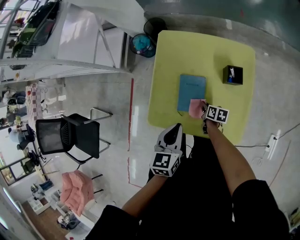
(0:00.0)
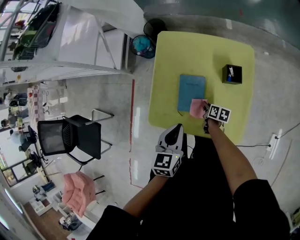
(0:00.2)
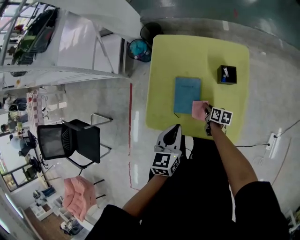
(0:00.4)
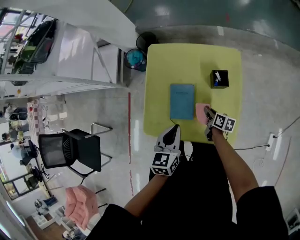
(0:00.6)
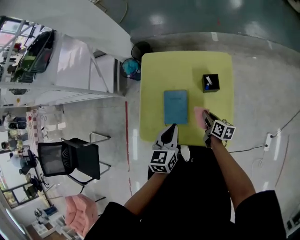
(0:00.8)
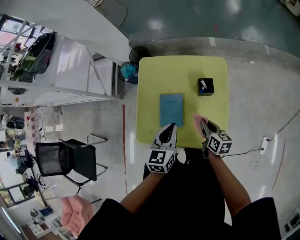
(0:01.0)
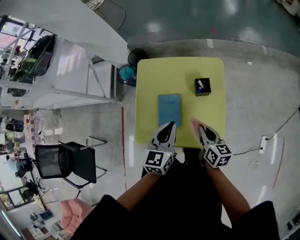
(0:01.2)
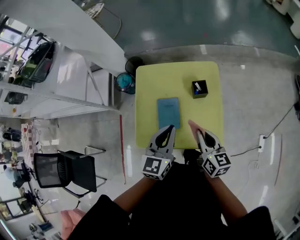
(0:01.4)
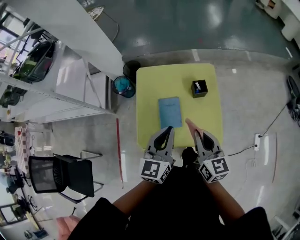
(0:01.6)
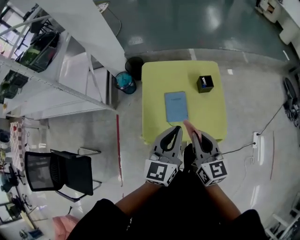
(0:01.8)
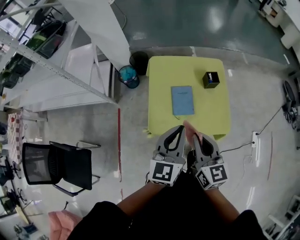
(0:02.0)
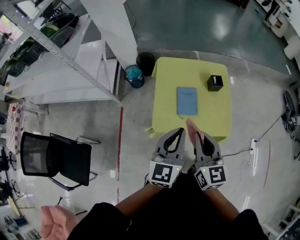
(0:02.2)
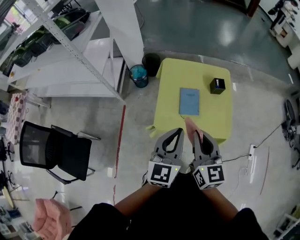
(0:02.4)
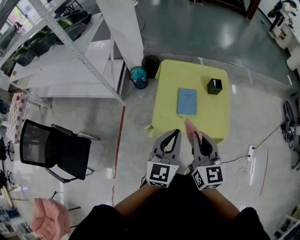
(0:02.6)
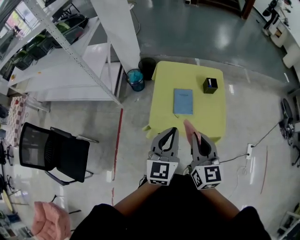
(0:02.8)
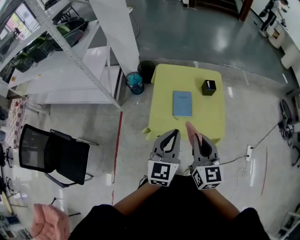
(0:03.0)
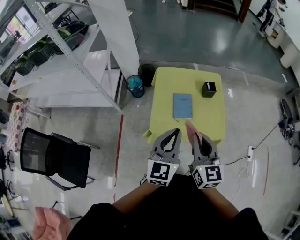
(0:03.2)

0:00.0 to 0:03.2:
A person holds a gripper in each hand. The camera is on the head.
0:00.0 to 0:01.6: The left gripper moves upward, about 20 cm, and turns by roughly 30 degrees. The right gripper moves upward, about 40 cm, and tilts its fingers approximately 30 degrees upward.
0:01.6 to 0:03.2: The grippers both shift backward, to the left and upward by roughly 25 cm.

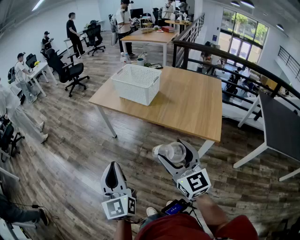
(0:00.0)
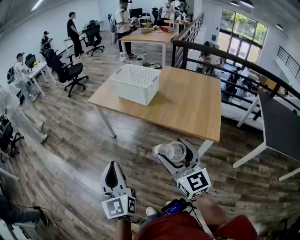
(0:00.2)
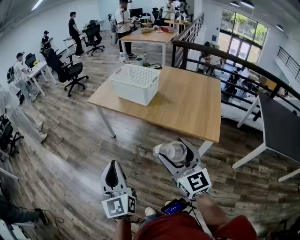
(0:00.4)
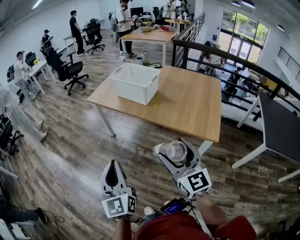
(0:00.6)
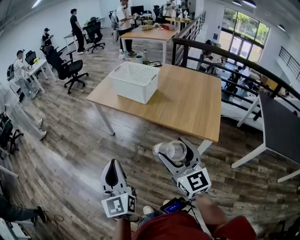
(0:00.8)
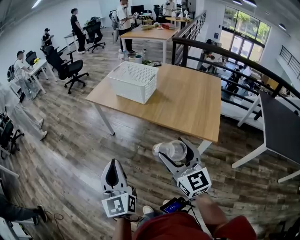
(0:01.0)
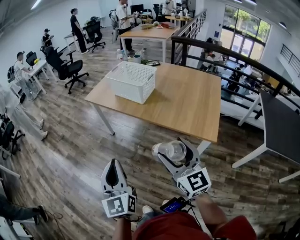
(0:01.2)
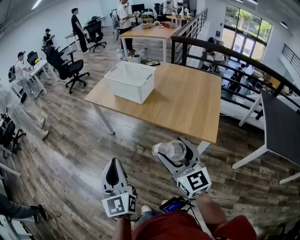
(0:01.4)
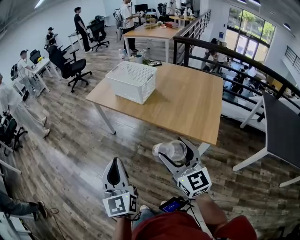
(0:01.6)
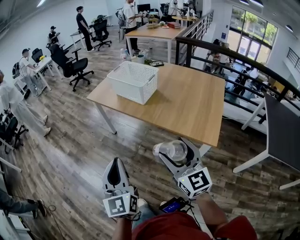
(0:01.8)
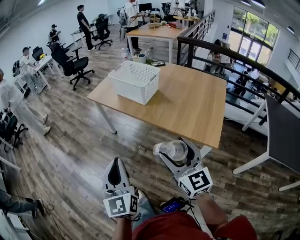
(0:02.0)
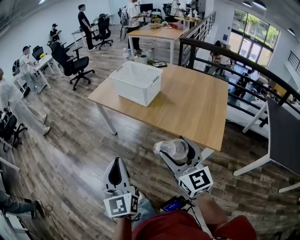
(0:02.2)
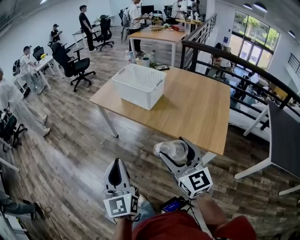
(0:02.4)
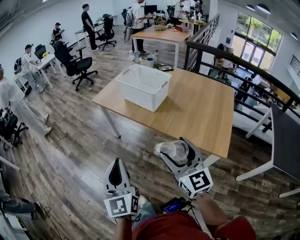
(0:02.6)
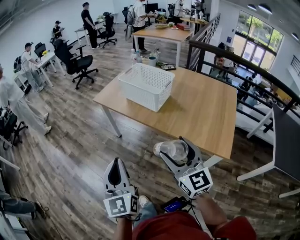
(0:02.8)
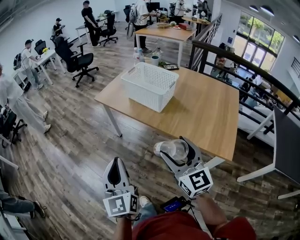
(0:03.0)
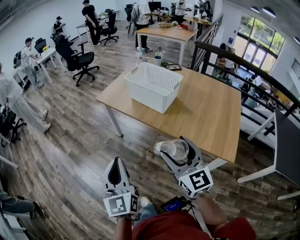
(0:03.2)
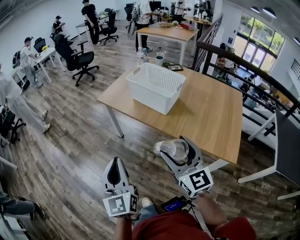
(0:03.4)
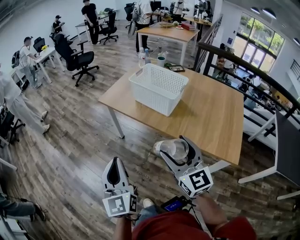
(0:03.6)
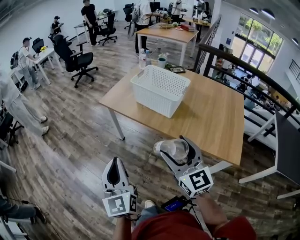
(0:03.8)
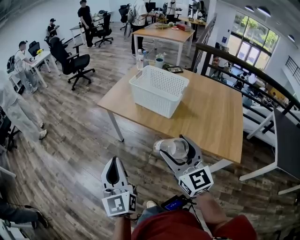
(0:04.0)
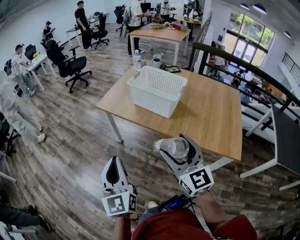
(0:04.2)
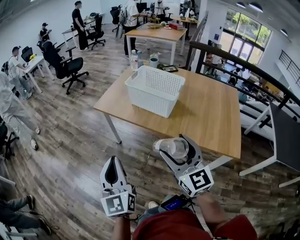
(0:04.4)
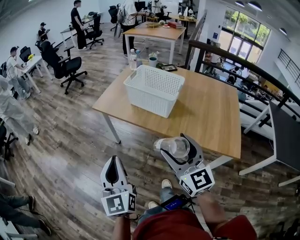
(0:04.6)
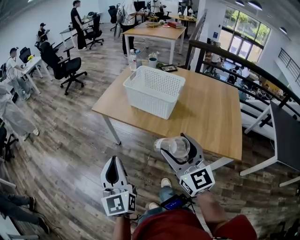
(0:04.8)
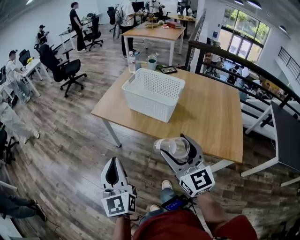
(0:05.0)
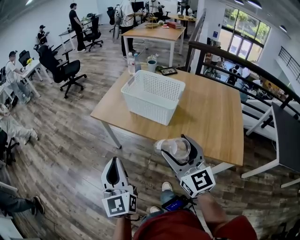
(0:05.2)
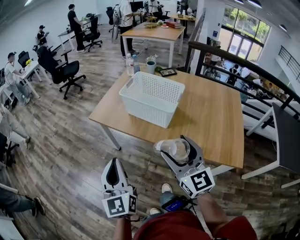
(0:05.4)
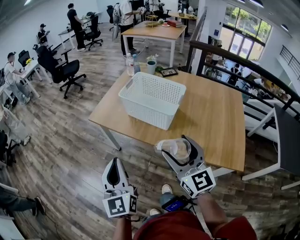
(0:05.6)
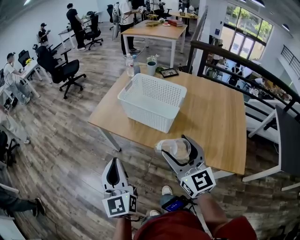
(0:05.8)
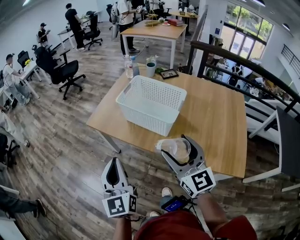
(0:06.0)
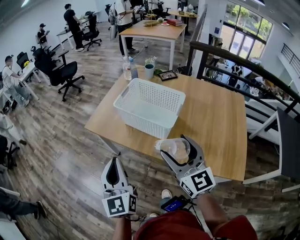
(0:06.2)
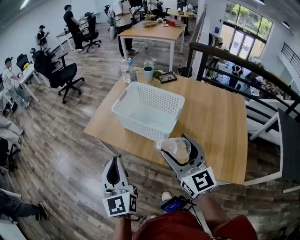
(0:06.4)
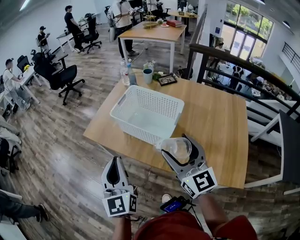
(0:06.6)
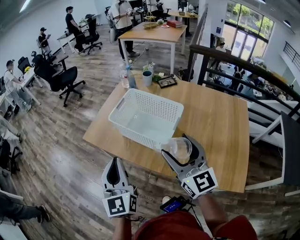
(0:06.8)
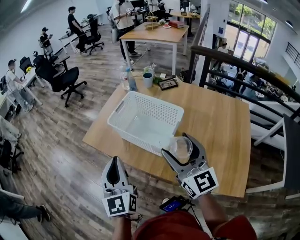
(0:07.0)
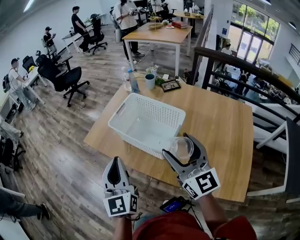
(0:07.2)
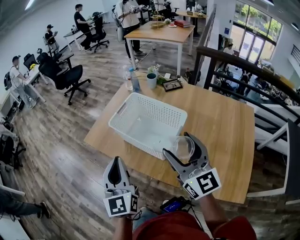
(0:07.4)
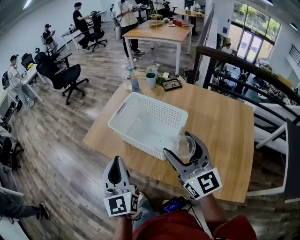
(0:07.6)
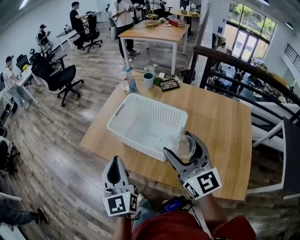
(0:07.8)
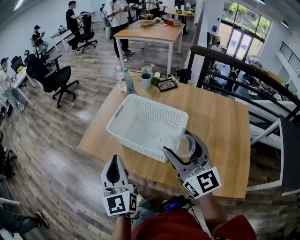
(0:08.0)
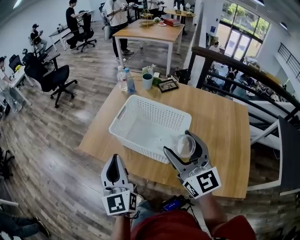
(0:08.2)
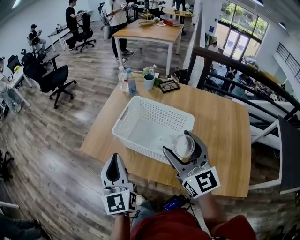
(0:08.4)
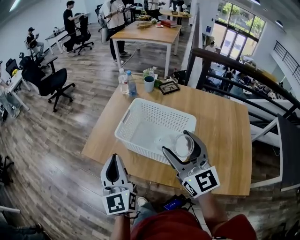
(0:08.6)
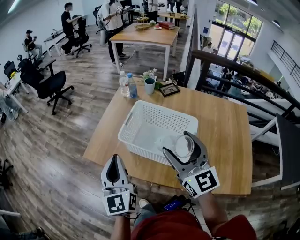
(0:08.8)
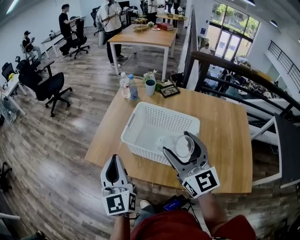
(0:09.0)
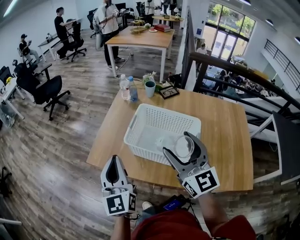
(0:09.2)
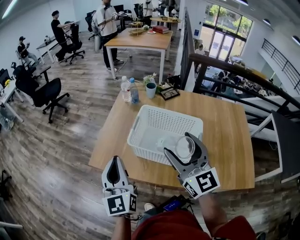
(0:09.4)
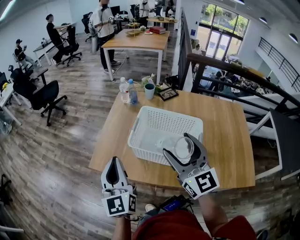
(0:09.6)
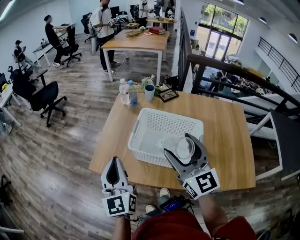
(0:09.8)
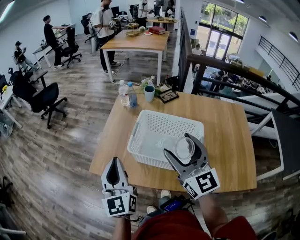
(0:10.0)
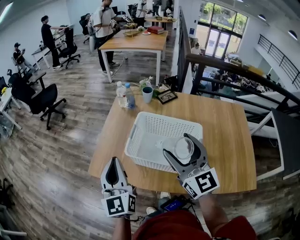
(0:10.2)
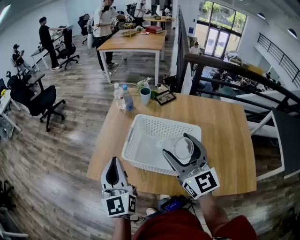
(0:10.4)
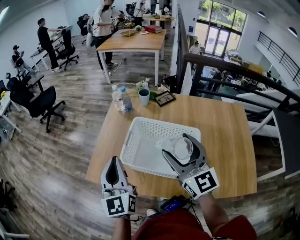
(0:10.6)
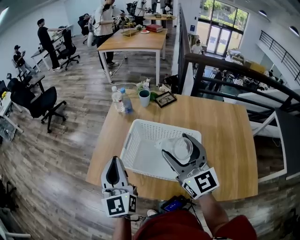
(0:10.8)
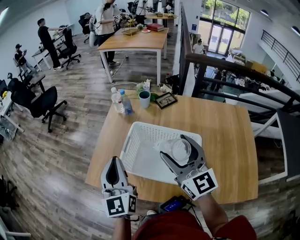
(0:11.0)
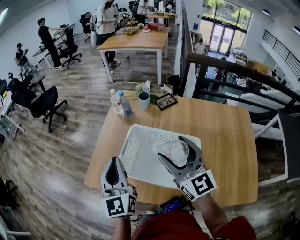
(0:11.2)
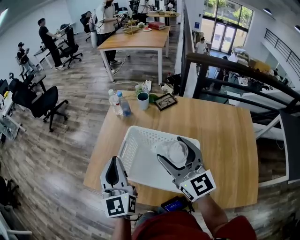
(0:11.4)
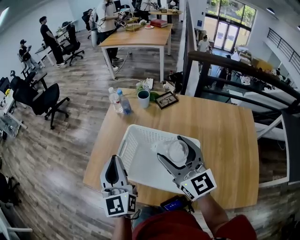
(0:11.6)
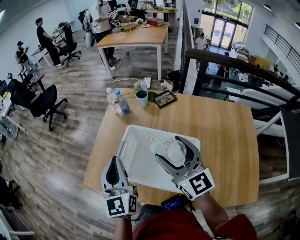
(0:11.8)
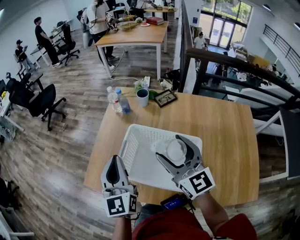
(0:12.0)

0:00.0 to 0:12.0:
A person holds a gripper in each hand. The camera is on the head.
0:00.0 to 0:01.6: Both grippers move to the right, roughly 10 cm.
0:01.6 to 0:03.0: The two grippers go approximately 15 cm forward and to the left.
0:03.0 to 0:04.4: Both grippers move forward and to the left, about 10 cm.
0:04.4 to 0:06.0: The grippers both shift forward and to the right by about 15 cm.
0:06.0 to 0:07.6: The two grippers go some 15 cm forward and to the right.
0:07.6 to 0:09.0: The left gripper goes some 15 cm forward and to the left. Meanwhile the right gripper shifts some 10 cm to the left and forward.
0:09.0 to 0:10.4: The left gripper goes about 5 cm forward.
0:10.4 to 0:12.0: The right gripper is displaced forward by approximately 5 cm, while the left gripper is displaced to the right and forward by some 10 cm.

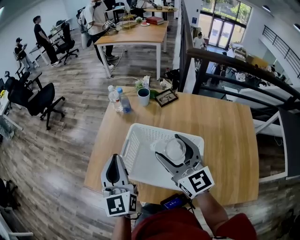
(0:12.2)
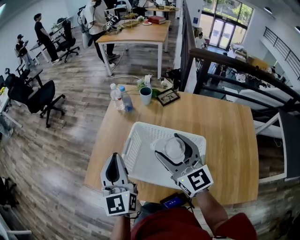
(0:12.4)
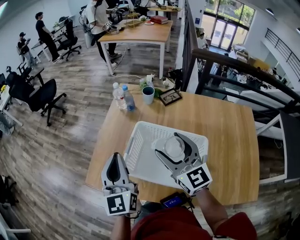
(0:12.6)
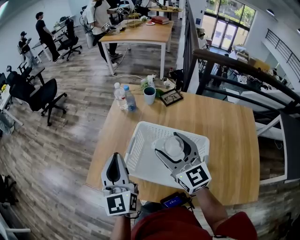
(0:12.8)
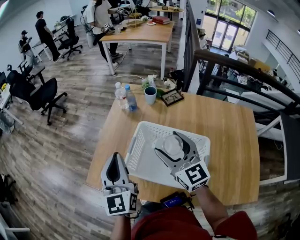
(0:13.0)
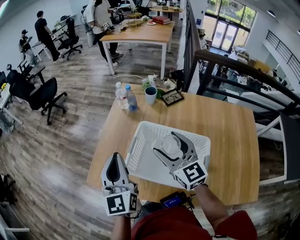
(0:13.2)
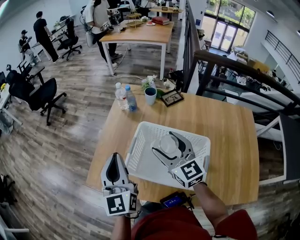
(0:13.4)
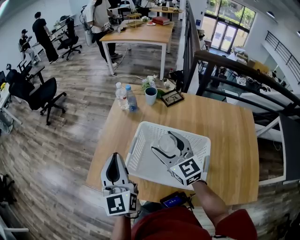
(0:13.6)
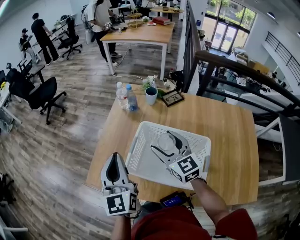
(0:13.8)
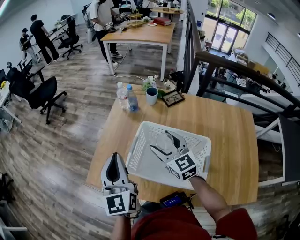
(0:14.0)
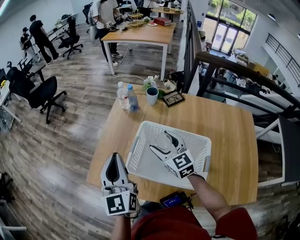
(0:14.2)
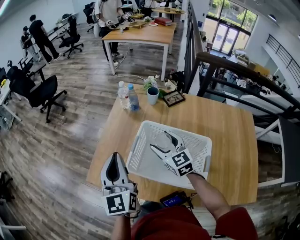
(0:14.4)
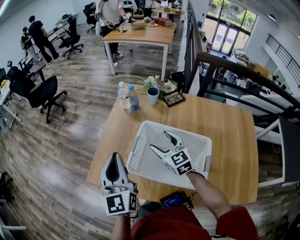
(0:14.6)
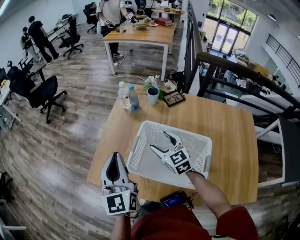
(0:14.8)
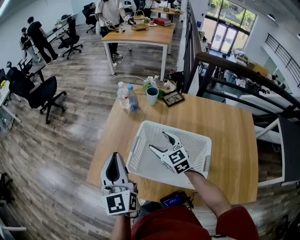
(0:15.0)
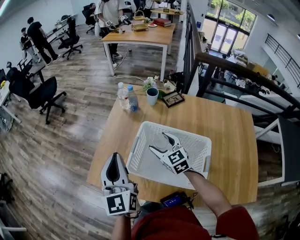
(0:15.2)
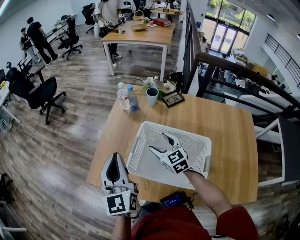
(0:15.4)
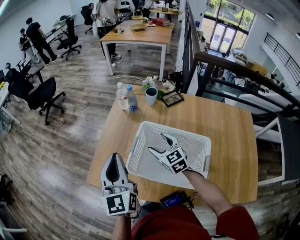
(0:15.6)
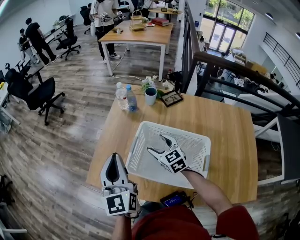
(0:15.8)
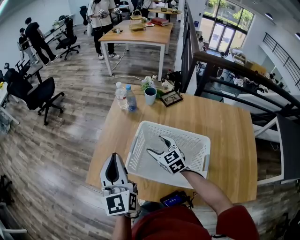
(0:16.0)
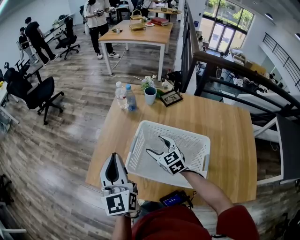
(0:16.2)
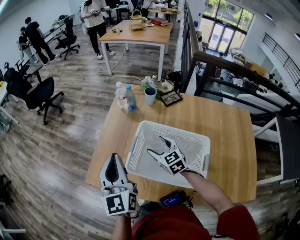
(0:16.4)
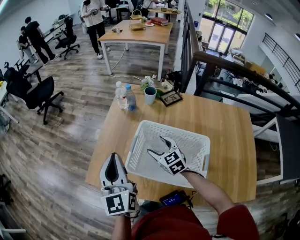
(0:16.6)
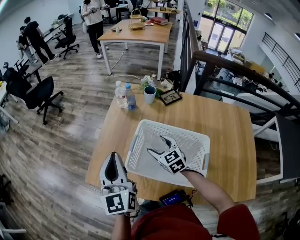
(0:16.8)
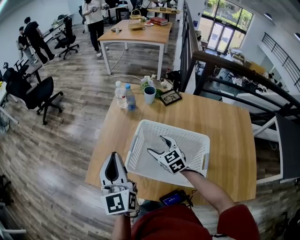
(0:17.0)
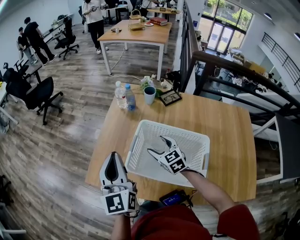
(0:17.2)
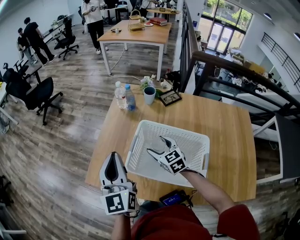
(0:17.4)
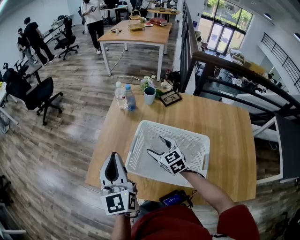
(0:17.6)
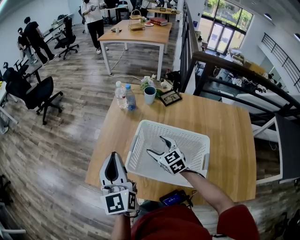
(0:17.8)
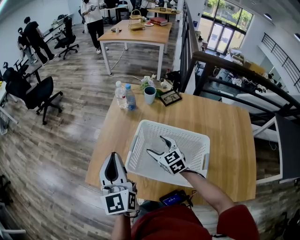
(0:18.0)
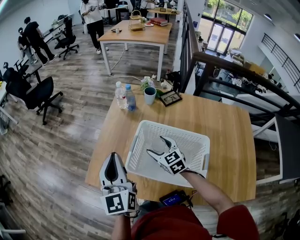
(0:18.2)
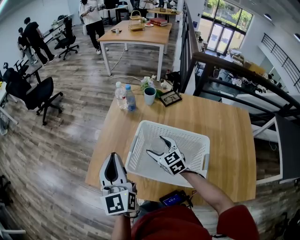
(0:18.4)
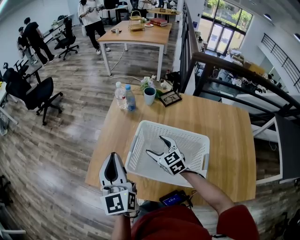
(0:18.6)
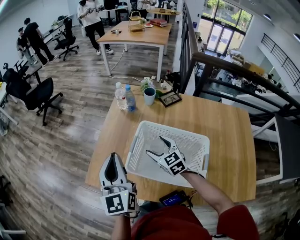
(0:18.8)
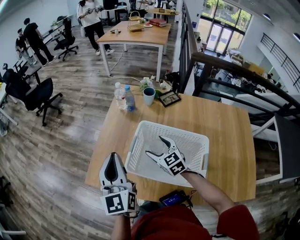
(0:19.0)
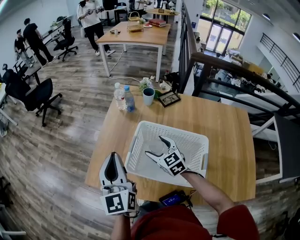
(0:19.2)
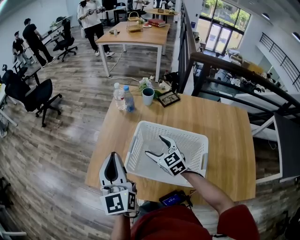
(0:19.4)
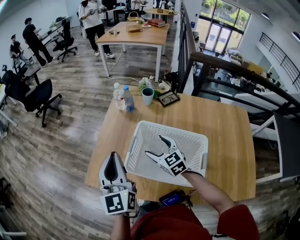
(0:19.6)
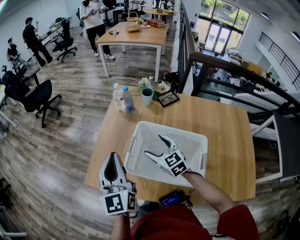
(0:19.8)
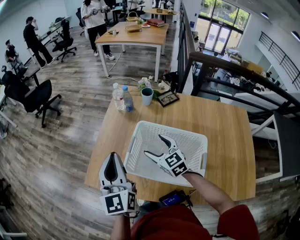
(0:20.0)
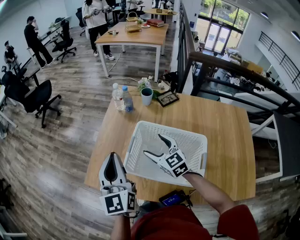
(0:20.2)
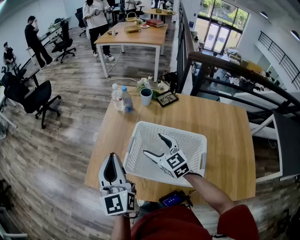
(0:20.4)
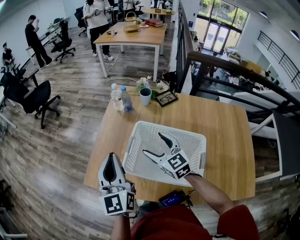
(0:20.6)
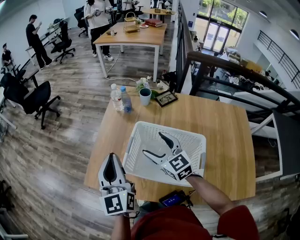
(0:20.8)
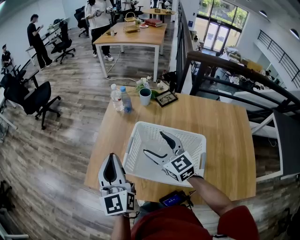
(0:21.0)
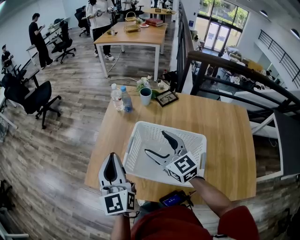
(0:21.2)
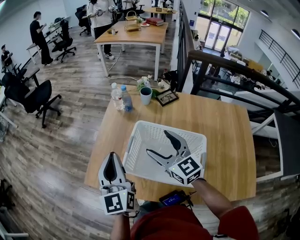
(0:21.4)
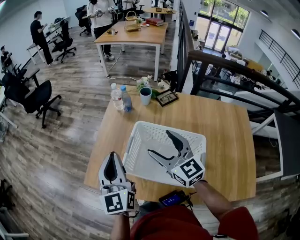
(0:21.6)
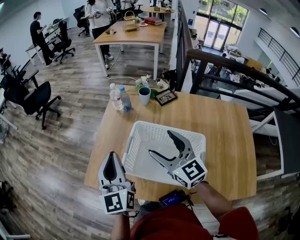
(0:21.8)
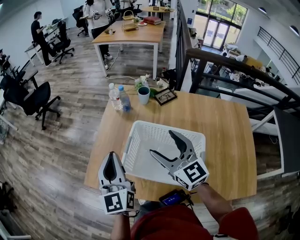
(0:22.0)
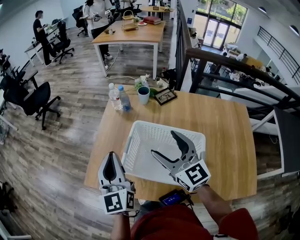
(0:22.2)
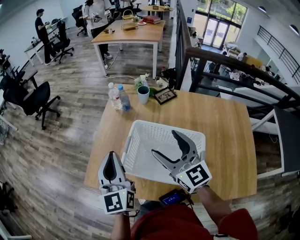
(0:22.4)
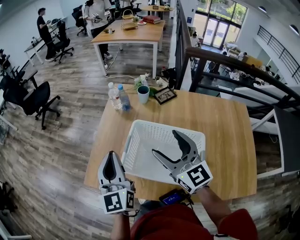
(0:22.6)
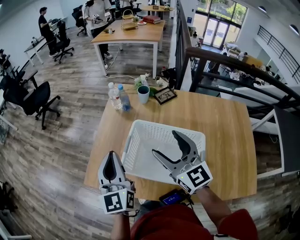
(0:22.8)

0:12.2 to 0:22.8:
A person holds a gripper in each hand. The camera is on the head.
0:12.2 to 0:13.8: The right gripper goes approximately 10 cm downward and forward.
0:13.8 to 0:15.2: The right gripper moves downward, some 10 cm.
0:15.2 to 0:16.8: The grippers stay close to where they were, moving slightly.
0:16.8 to 0:18.2: The two grippers keep their place.
0:18.2 to 0:19.8: There are only small adjustments of the grippers.
0:19.8 to 0:21.2: The right gripper is displaced upward by roughly 10 cm.
0:21.2 to 0:22.8: The right gripper heads upward, covering roughly 5 cm.
